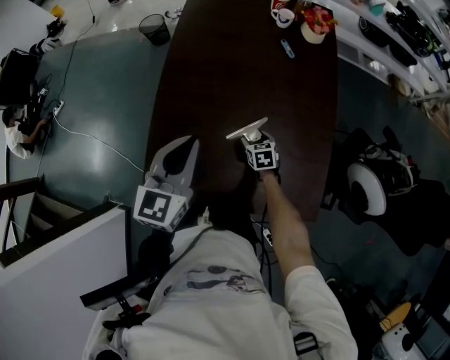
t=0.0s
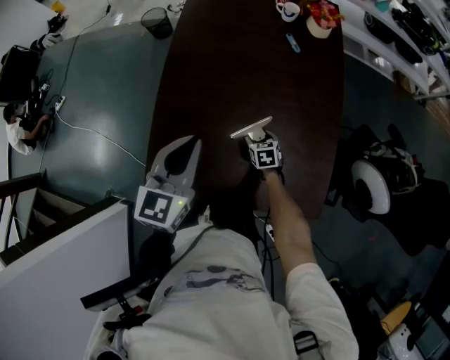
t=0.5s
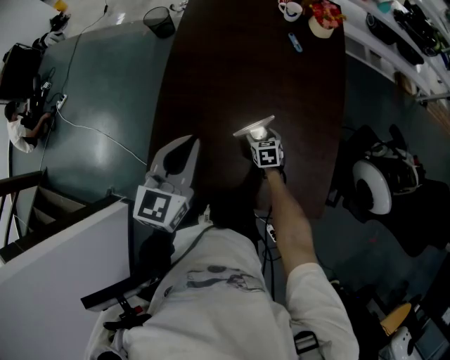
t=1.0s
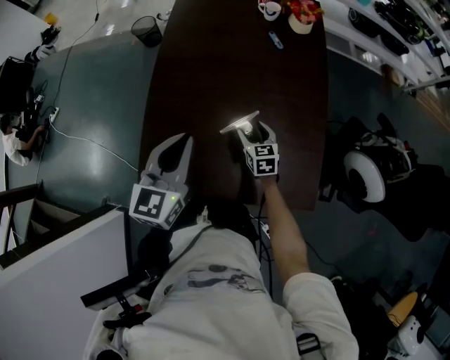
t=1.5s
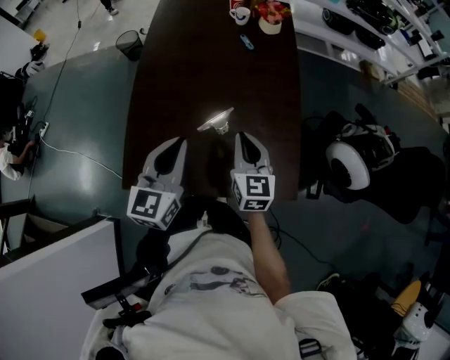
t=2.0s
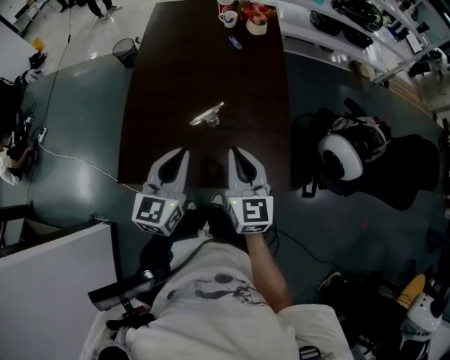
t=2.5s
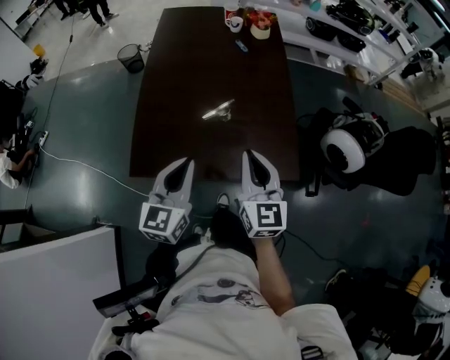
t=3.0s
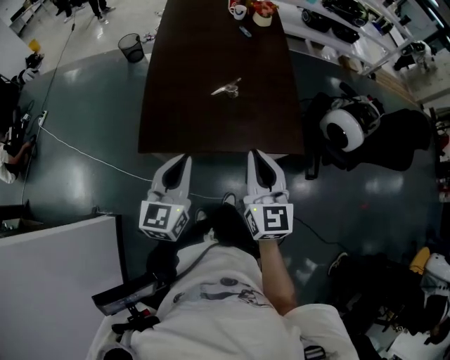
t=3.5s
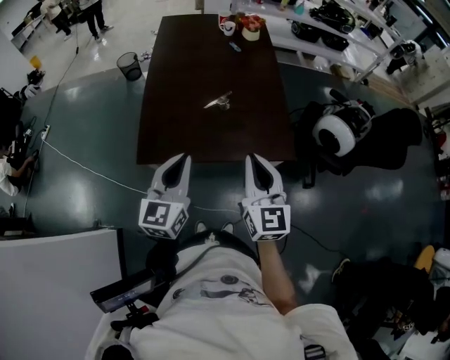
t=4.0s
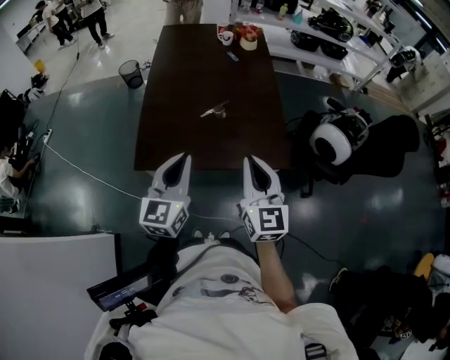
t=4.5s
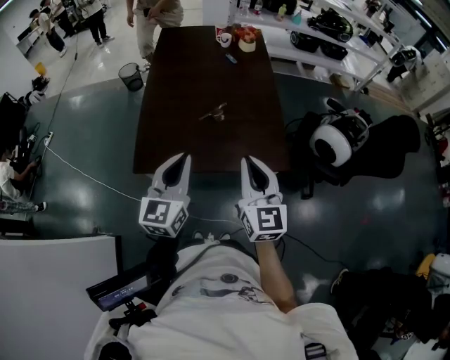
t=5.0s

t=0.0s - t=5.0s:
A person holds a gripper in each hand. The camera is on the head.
t=0.0s - t=2.5s: The left gripper moves backward and to the right, some 15 cm. Meanwhile the right gripper is displaced upward and backward by some 35 cm, points its fingers some 40 degrees further upward, and closes.
t=2.5s - t=5.0s: The left gripper moves backward, about 10 cm; the right gripper is displaced backward and upward by some 15 cm.

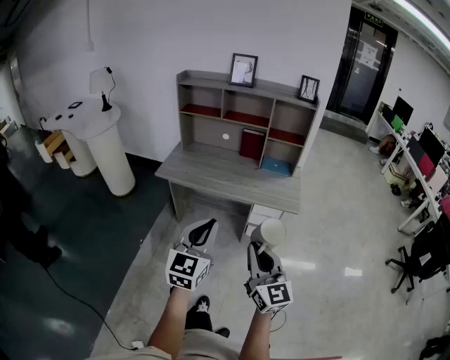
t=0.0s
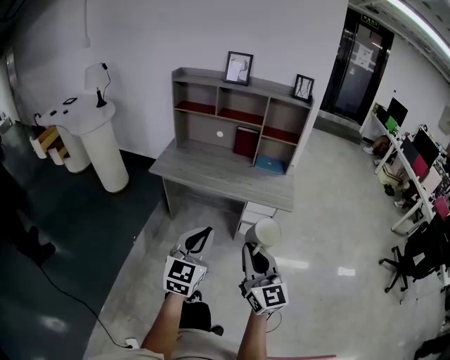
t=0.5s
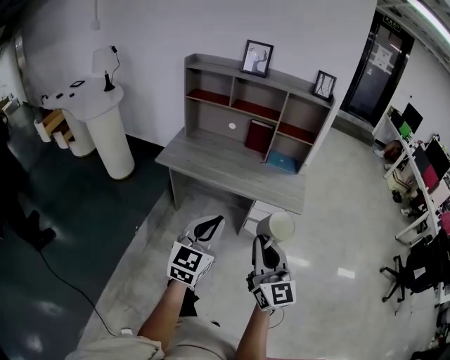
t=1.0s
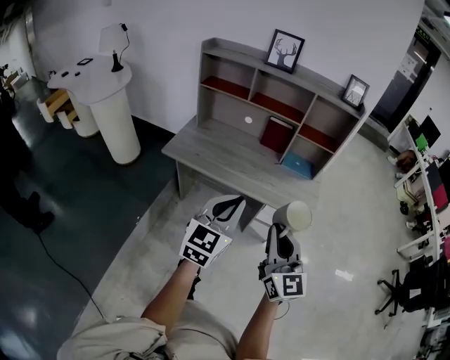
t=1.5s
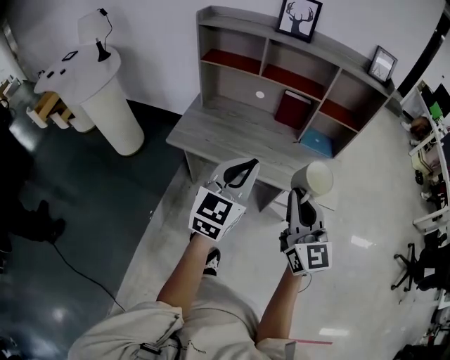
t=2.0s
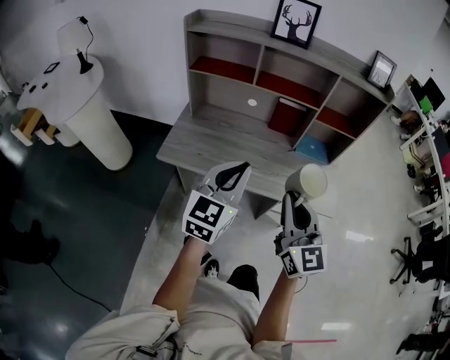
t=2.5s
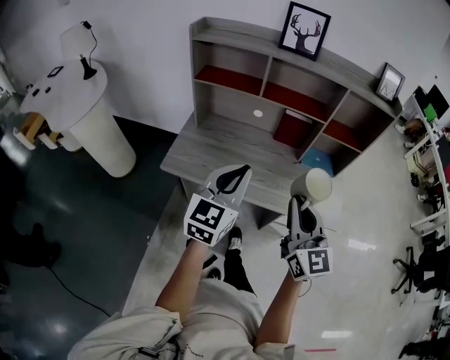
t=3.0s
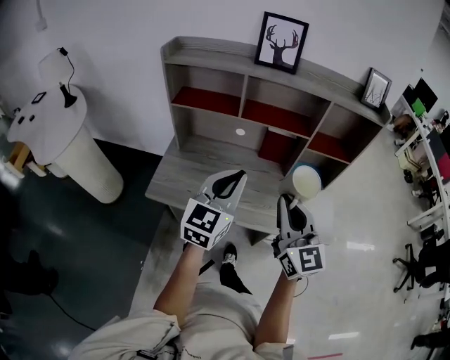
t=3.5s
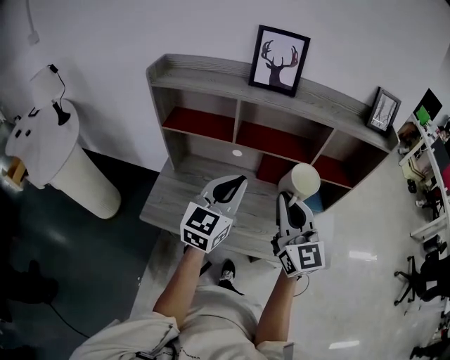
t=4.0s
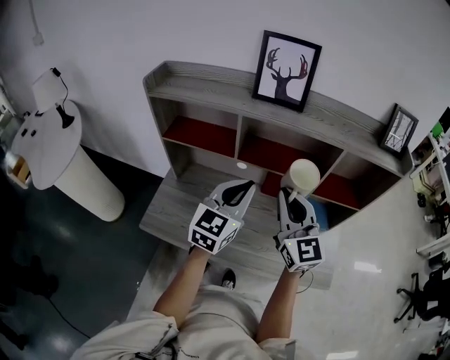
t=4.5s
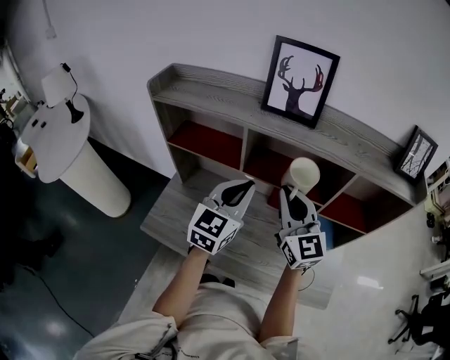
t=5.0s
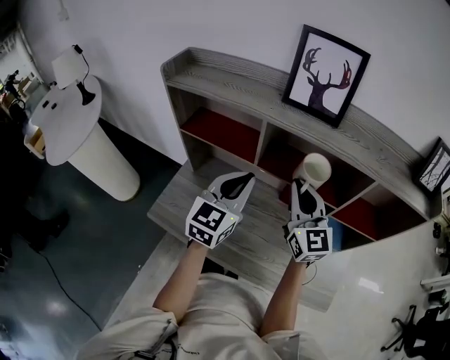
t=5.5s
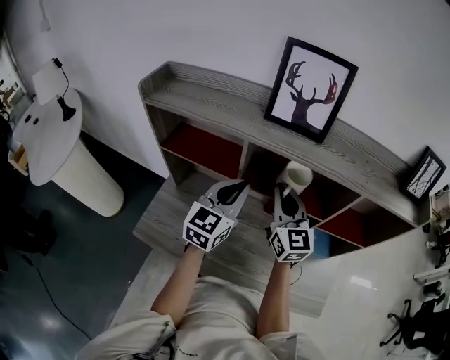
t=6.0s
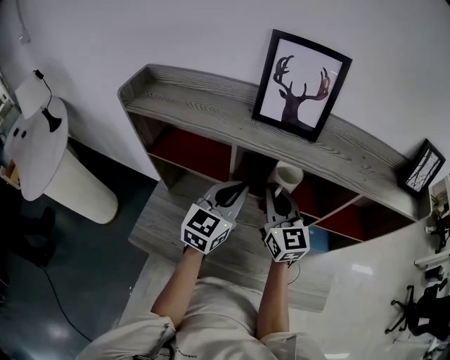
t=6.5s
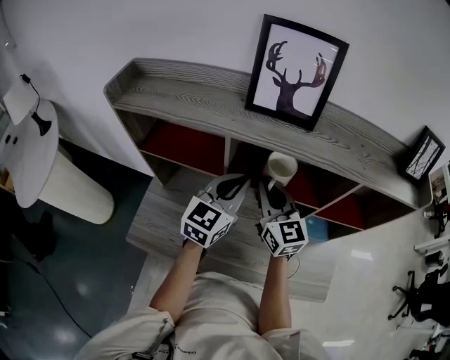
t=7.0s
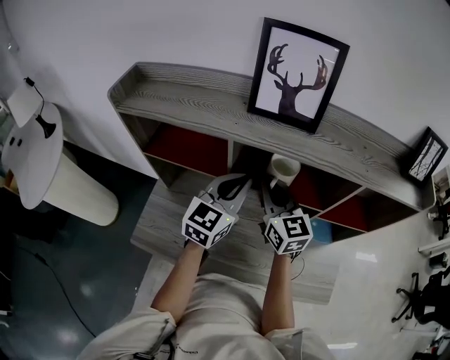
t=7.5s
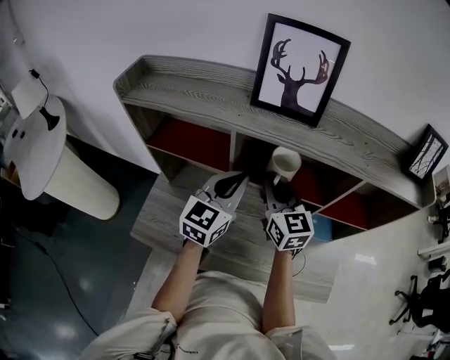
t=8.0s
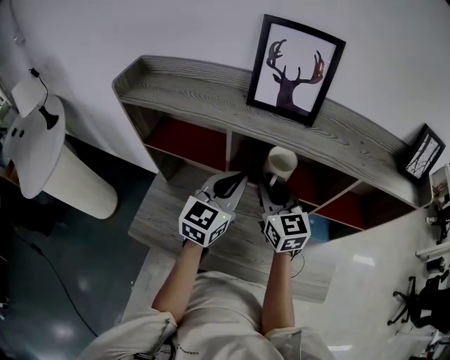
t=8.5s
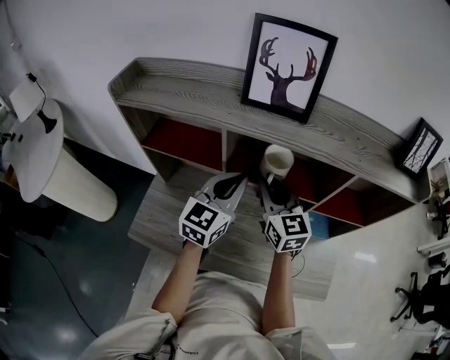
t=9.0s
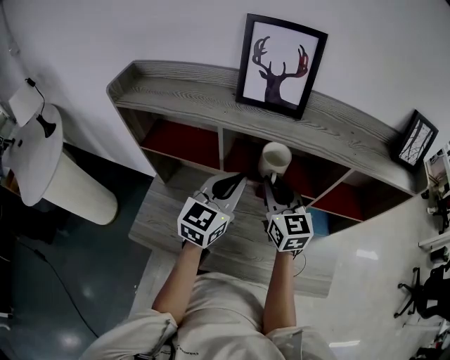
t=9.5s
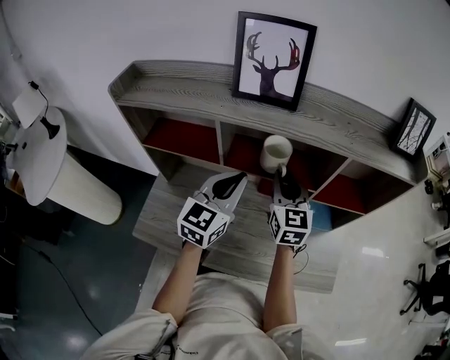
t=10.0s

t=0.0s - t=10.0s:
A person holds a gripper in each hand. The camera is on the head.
t=0.0s - t=2.0s: The grippers both shift forward by roughly 30 cm.
t=2.0s - t=4.0s: Both grippers travel together forward, roughly 30 cm.
t=4.0s - t=6.0s: Both grippers travel together forward, about 20 cm.
t=6.0s - t=8.0s: The grippers move only a little.
t=8.0s - t=10.0s: The right gripper travels to the right by roughly 5 cm.

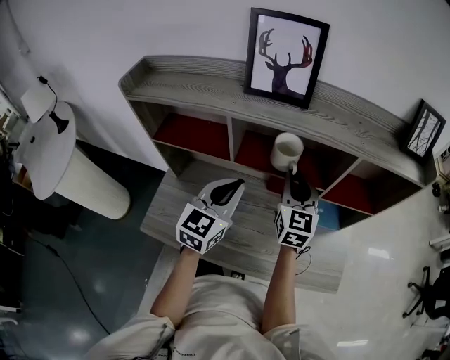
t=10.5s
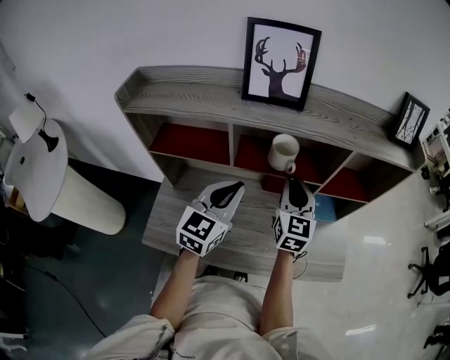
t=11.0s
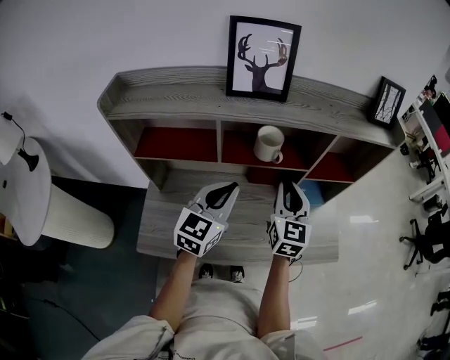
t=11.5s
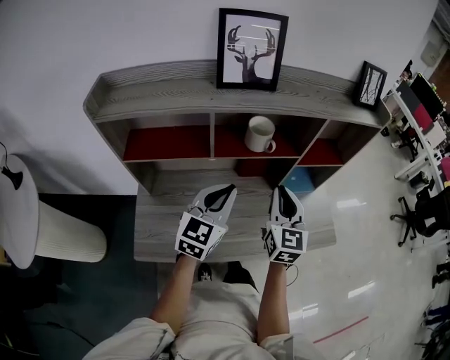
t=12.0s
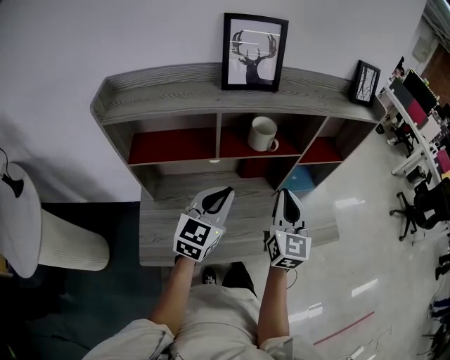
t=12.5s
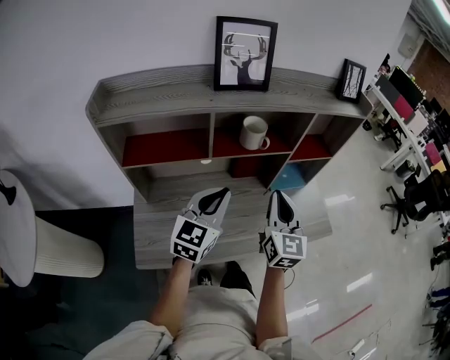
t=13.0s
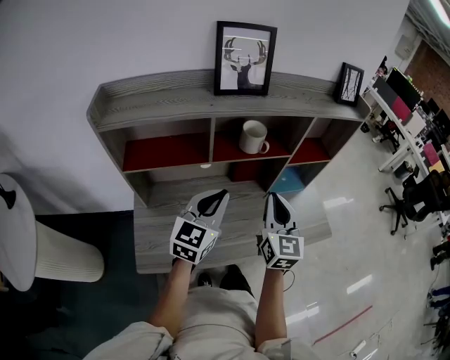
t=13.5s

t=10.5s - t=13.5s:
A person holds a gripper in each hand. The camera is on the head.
t=10.5s - t=12.0s: The right gripper heads backward, covering some 15 cm.
t=12.0s - t=13.5s: The right gripper travels backward by roughly 5 cm.

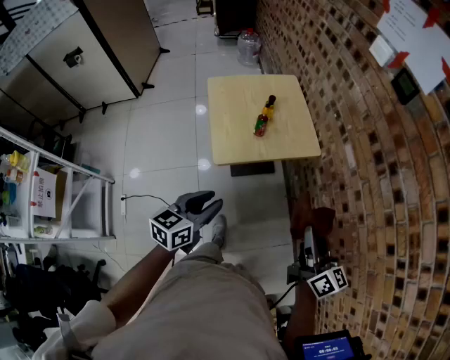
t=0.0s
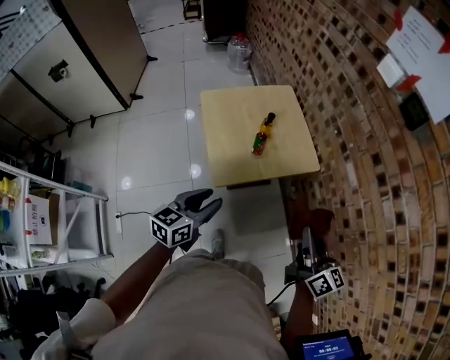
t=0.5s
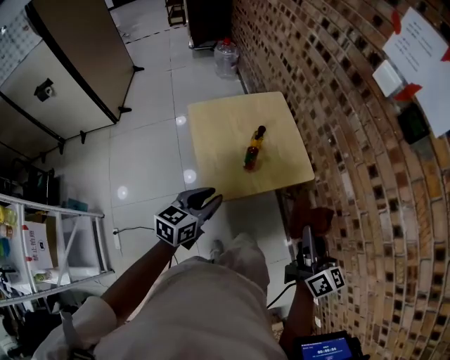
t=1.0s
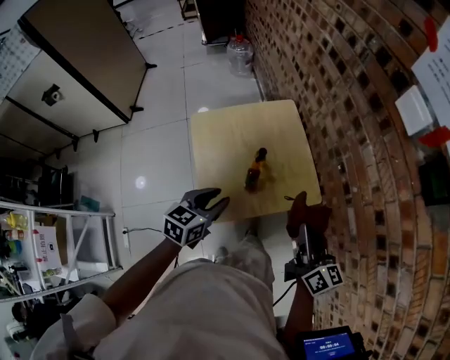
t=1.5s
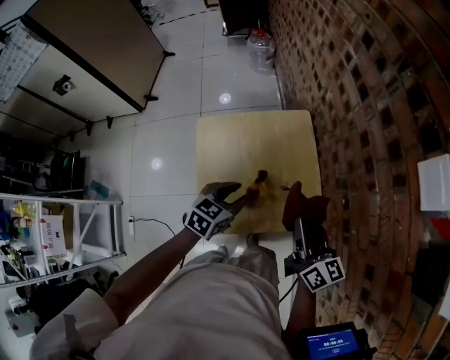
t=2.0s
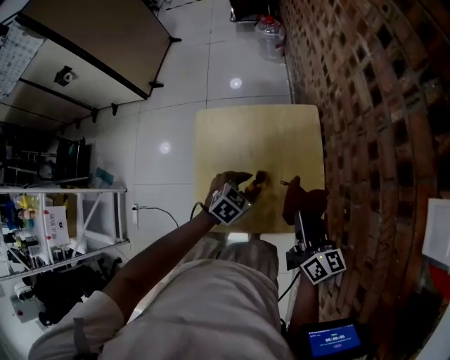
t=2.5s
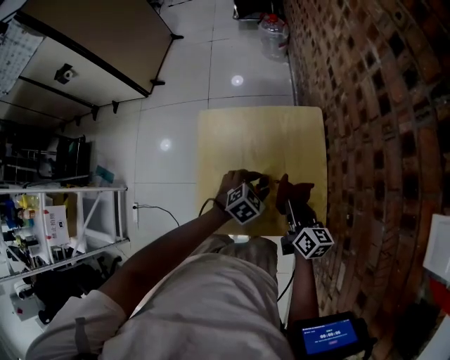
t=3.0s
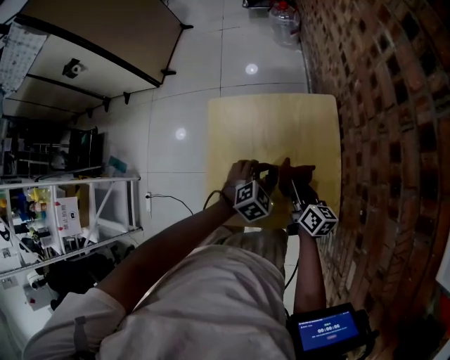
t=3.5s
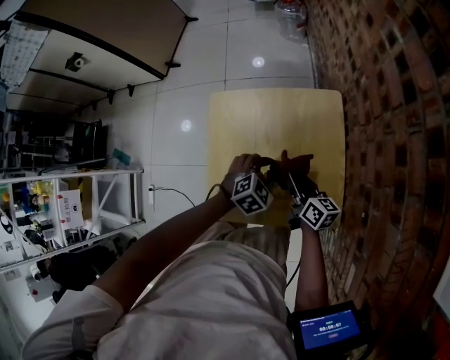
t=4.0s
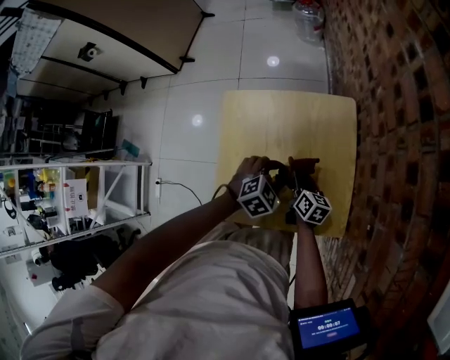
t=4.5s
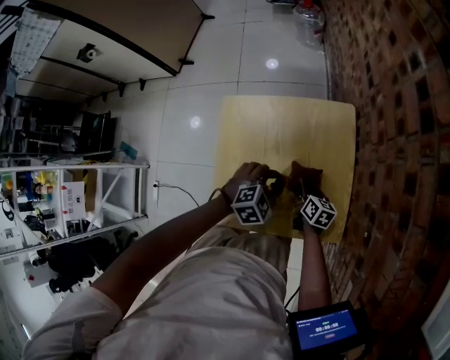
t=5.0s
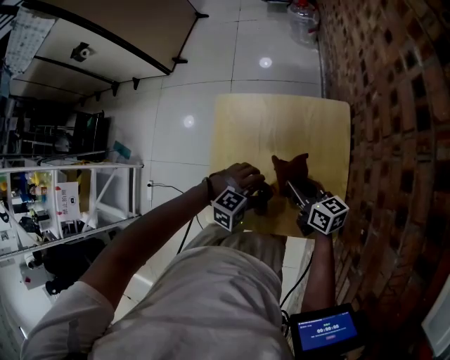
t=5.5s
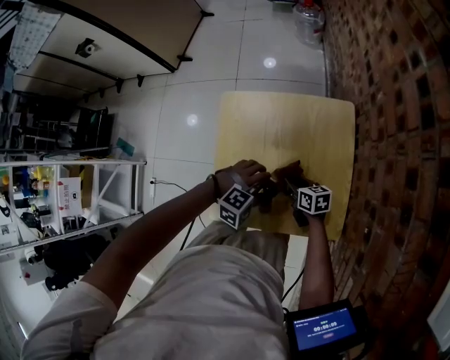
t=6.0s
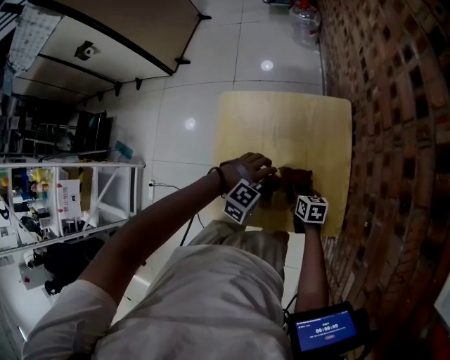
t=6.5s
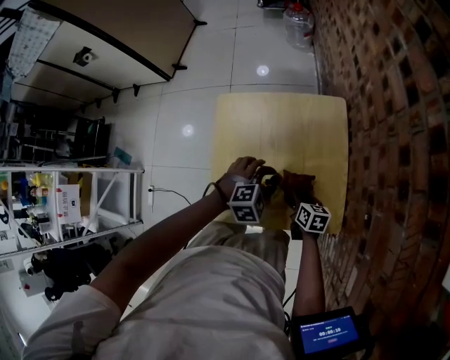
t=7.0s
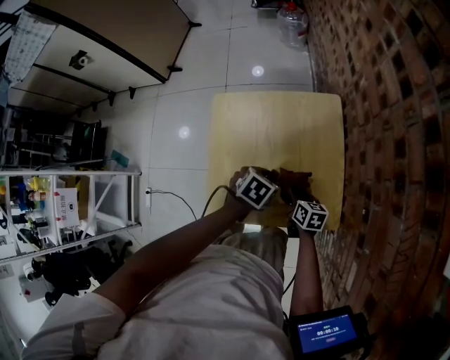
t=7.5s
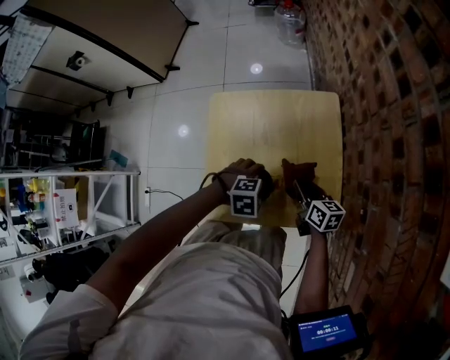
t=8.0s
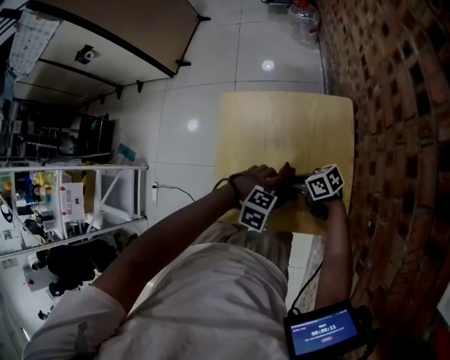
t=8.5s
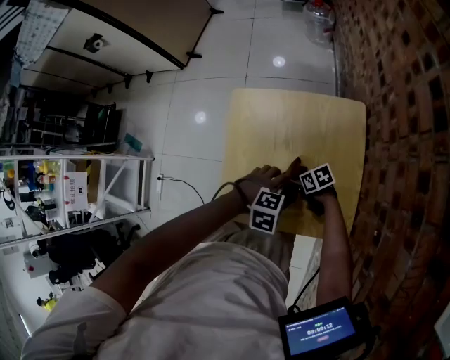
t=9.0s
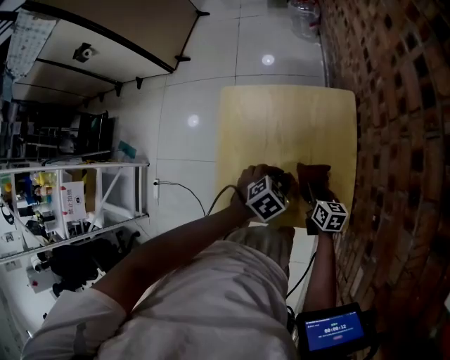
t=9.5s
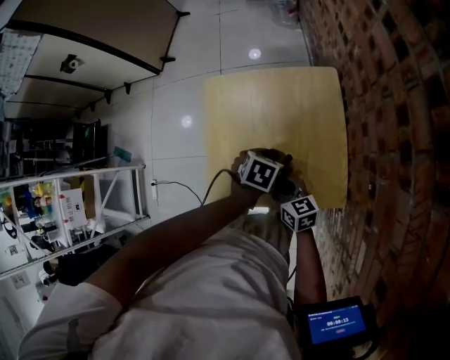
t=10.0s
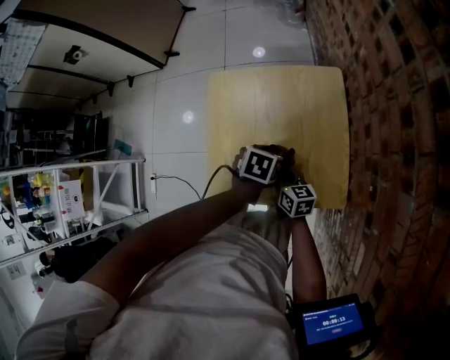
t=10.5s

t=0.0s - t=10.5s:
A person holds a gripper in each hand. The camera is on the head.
t=0.0s - t=2.0s: Both grippers are carried forward, approximately 40 cm. The left gripper changes its angle by some 20 degrees.
t=2.0s - t=4.0s: The left gripper goes approximately 15 cm downward and forward, and changes its angle by approximately 30 degrees; the right gripper shifts roughly 25 cm downward and forward, and turns by approximately 30 degrees.
t=4.0s - t=6.5s: The right gripper moves up and down over approximately 15 cm, changing direction 2 times, and tilts its fingers approximately 30 degrees downward. Meanwhile the left gripper moves about 5 cm, and rolls clockwise, seen from behind, by some 50 degrees.
t=6.5s - t=8.5s: The right gripper shifts roughly 10 cm upward, and changes its angle by approximately 40 degrees.
t=8.5s - t=10.5s: The left gripper shifts by roughly 10 cm, and twists some 80 degrees counterclockwise, seen from behind; the right gripper reaches approximately 10 cm downward, then returns, and turns by about 50 degrees.
